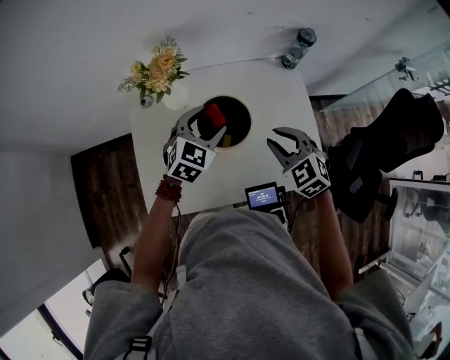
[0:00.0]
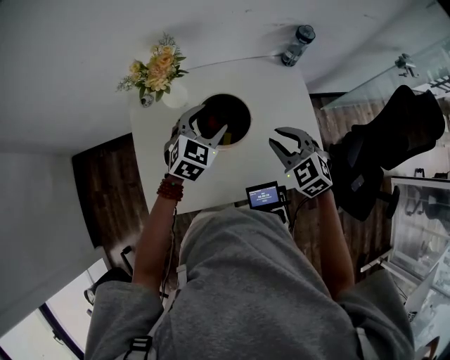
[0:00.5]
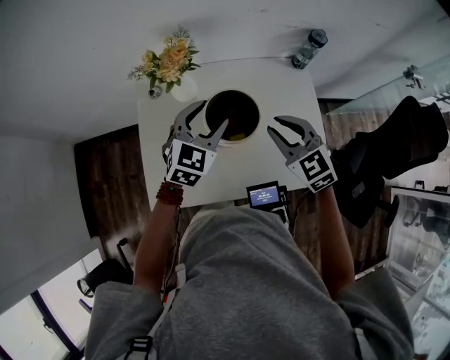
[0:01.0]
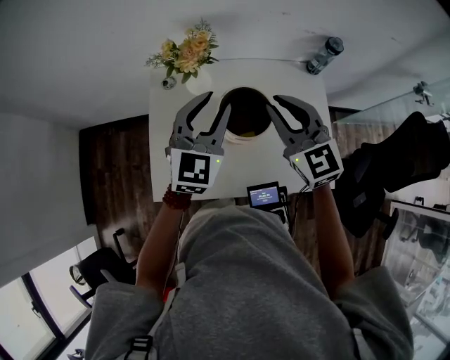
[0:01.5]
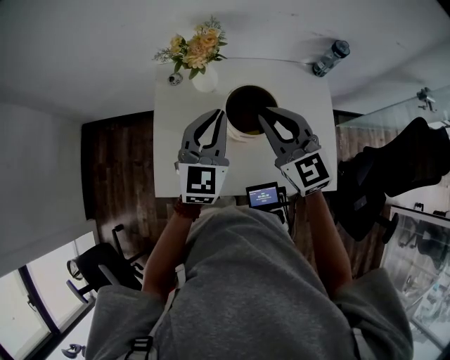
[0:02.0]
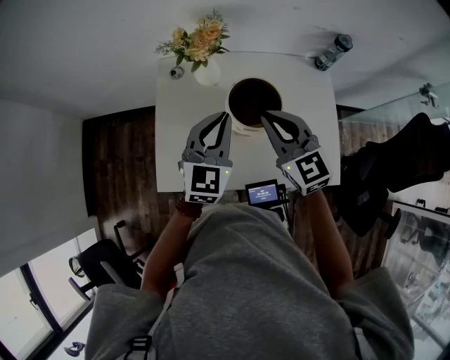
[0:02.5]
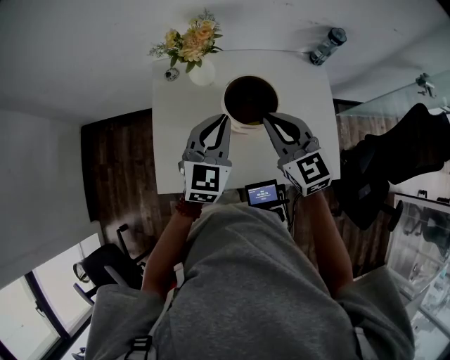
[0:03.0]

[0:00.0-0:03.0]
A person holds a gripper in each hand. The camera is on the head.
0:00.0 to 0:01.5: Both grippers move upward and to the left, about 15 cm. The left gripper swivels roughly 30 degrees, and closes its fingers. The right gripper changes its angle by some 30 degrees.
0:01.5 to 0:03.0: The left gripper moves downward and backward, roughly 10 cm, and closes its fingers, while the right gripper goes approximately 5 cm downward.

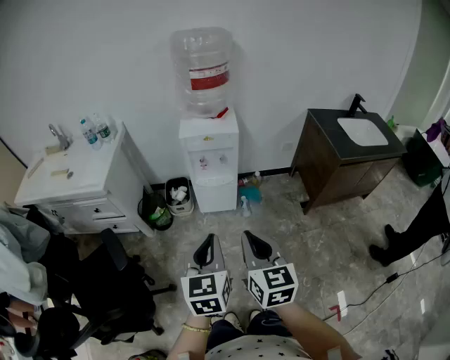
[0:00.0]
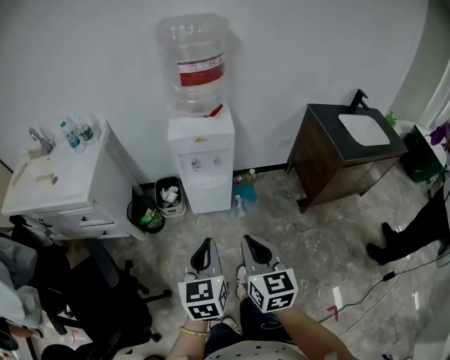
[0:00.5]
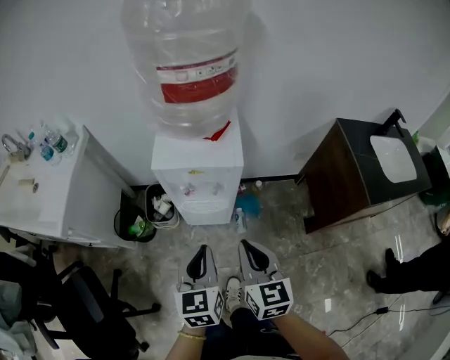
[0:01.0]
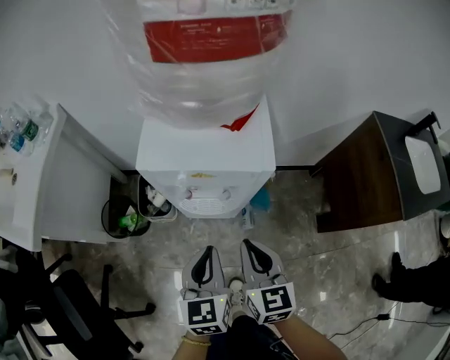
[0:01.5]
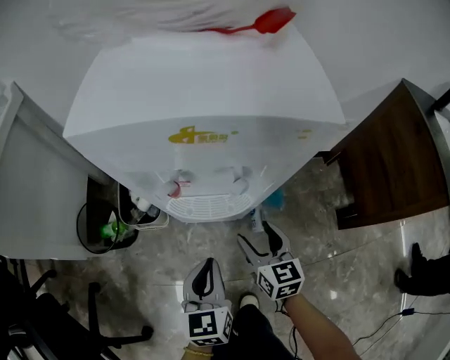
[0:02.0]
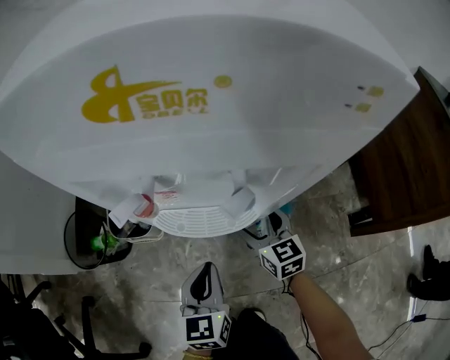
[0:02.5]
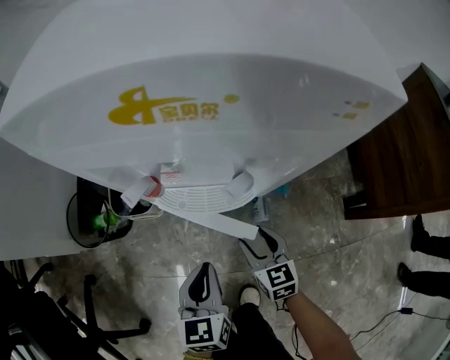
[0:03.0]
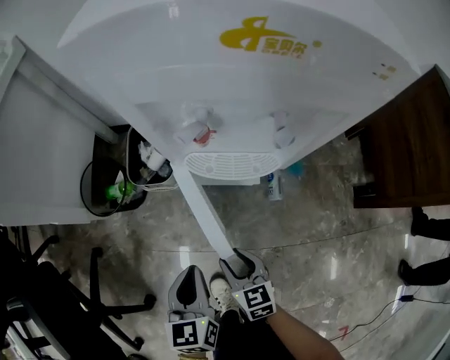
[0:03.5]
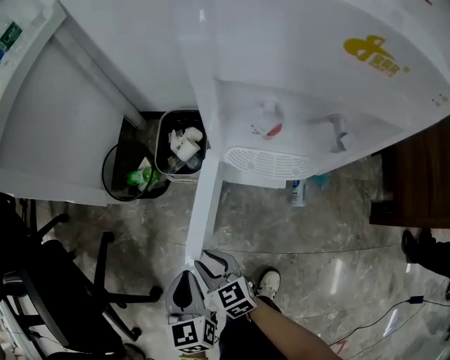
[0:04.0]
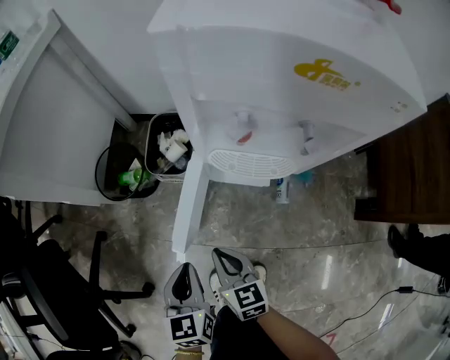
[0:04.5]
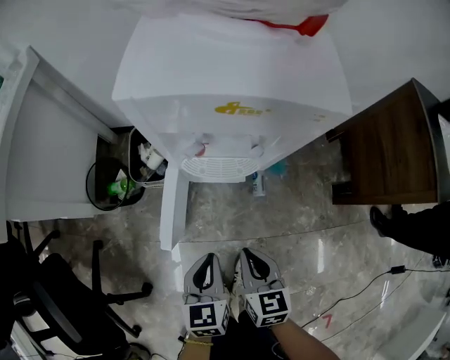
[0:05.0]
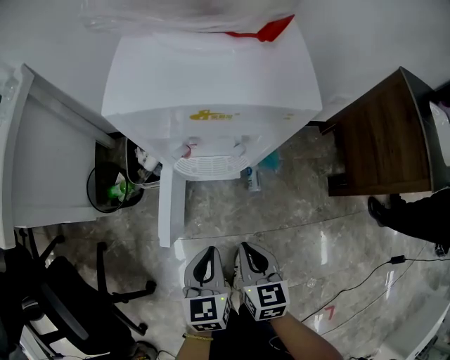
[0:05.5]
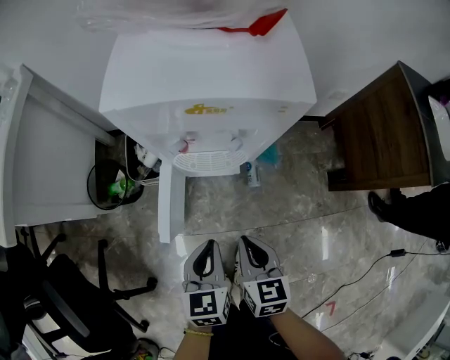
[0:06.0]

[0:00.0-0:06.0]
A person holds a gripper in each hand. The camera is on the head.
0:00.0 to 0:02.0: The two grippers travel together, forward, approximately 40 cm. The two grippers go about 50 cm downward. The right gripper opens its fingers.
0:02.0 to 0:04.0: The right gripper ends up about 35 cm from where it was, changes its angle by some 40 degrees, and closes up, while the left gripper moves about 25 cm, and swivels some 20 degrees.
0:04.0 to 0:06.0: The right gripper shifts by about 30 cm, and swivels roughly 40 degrees, while the left gripper moves roughly 25 cm, and changes its angle by approximately 20 degrees.

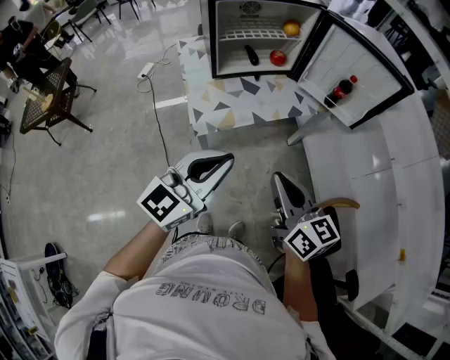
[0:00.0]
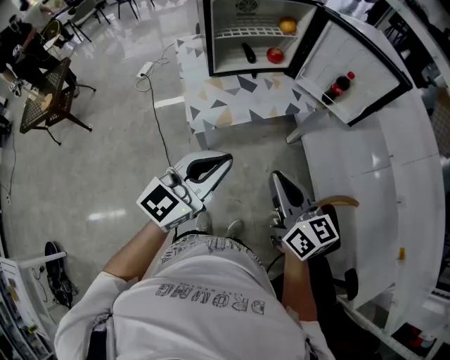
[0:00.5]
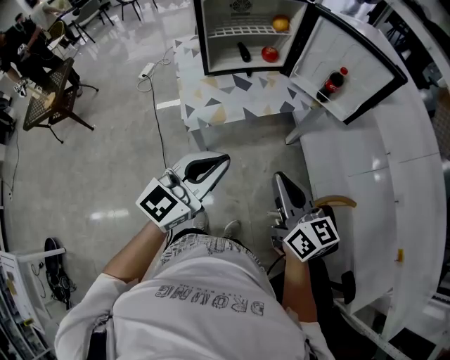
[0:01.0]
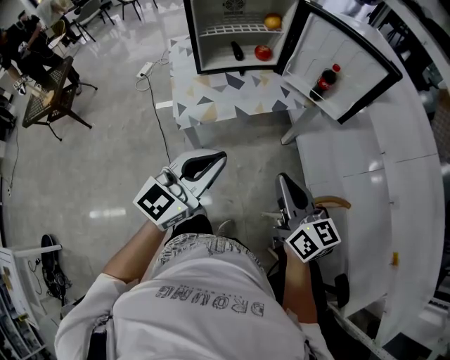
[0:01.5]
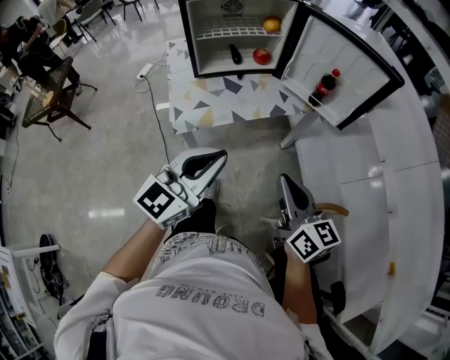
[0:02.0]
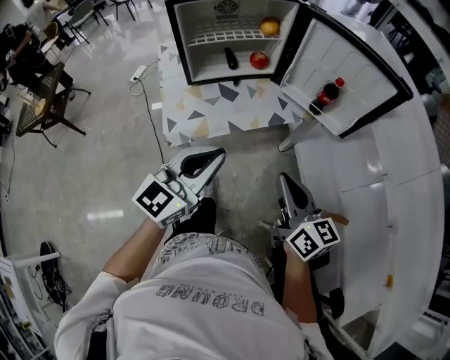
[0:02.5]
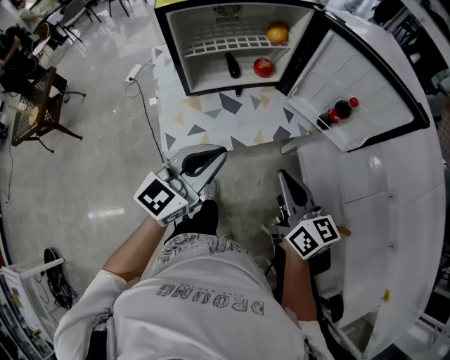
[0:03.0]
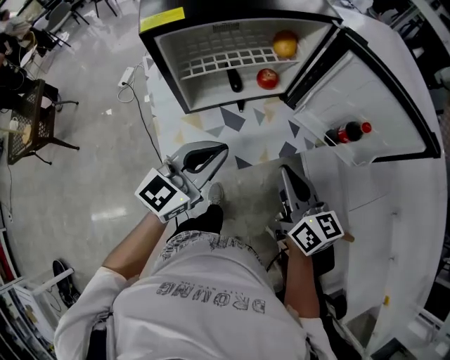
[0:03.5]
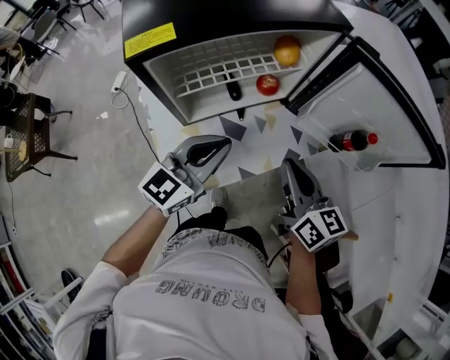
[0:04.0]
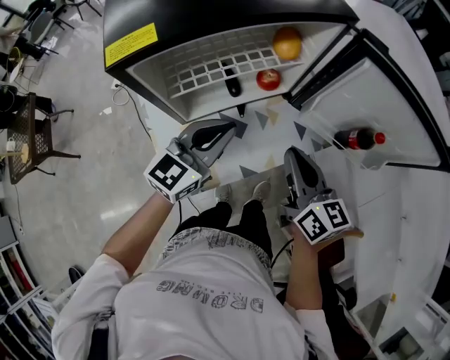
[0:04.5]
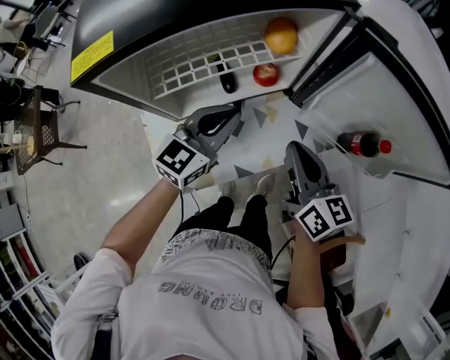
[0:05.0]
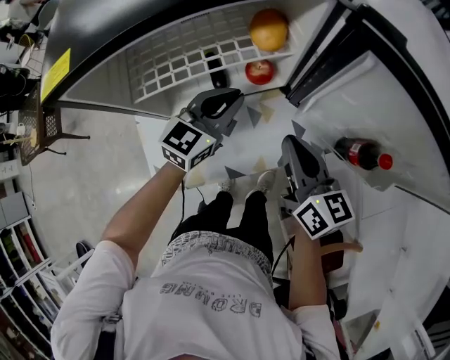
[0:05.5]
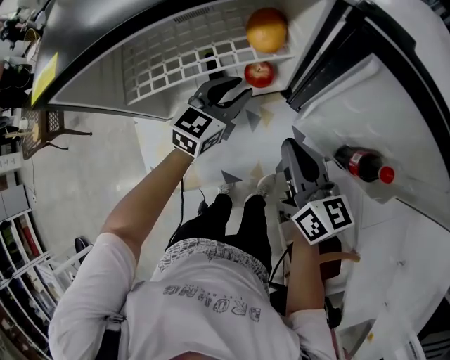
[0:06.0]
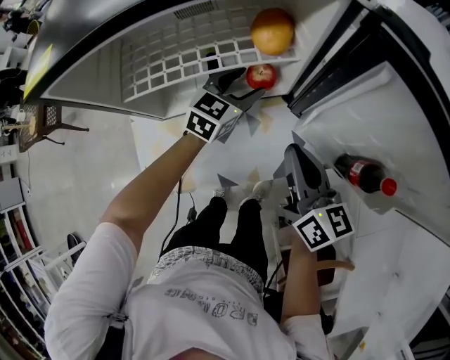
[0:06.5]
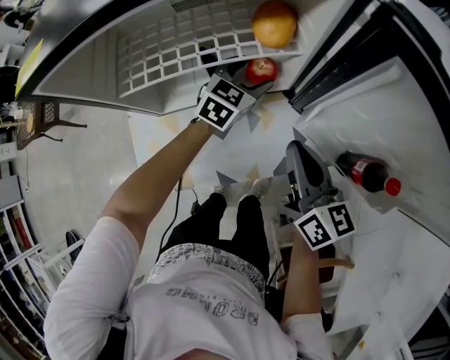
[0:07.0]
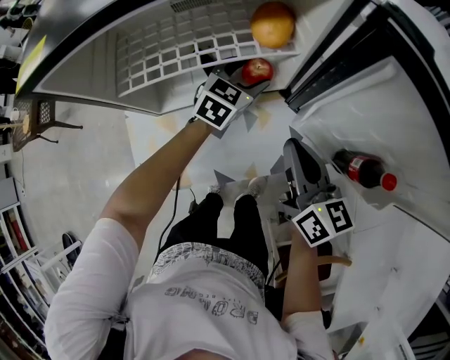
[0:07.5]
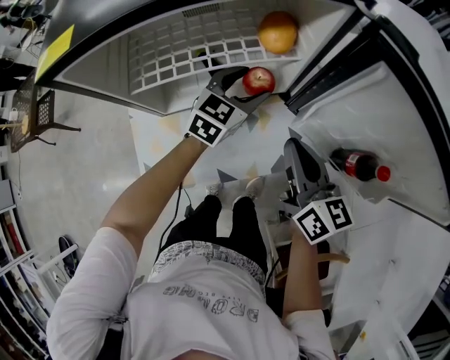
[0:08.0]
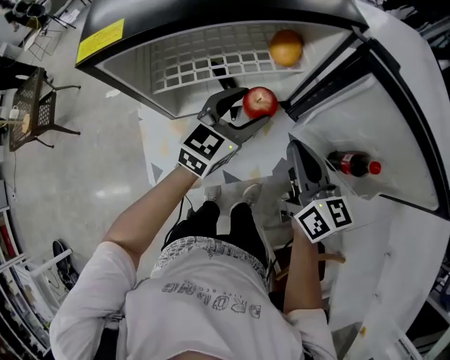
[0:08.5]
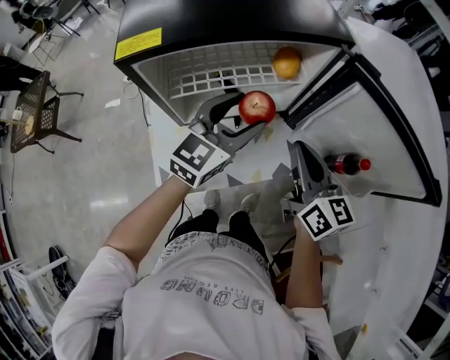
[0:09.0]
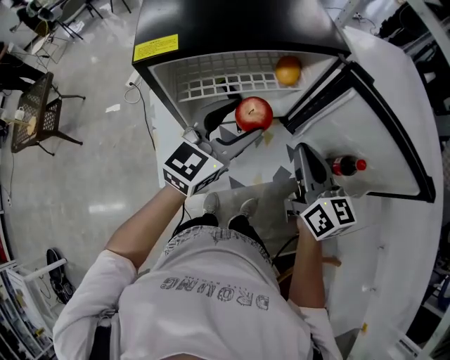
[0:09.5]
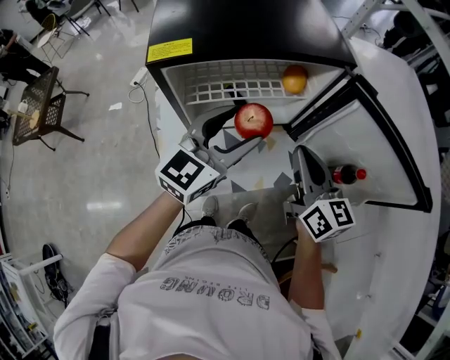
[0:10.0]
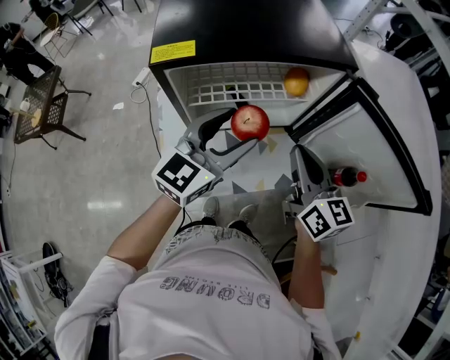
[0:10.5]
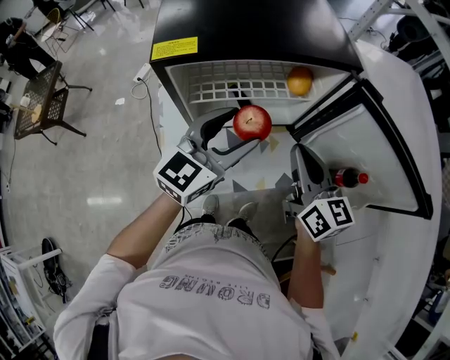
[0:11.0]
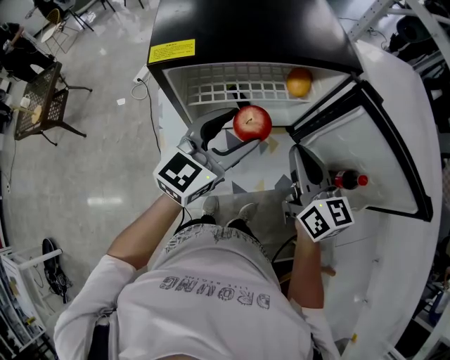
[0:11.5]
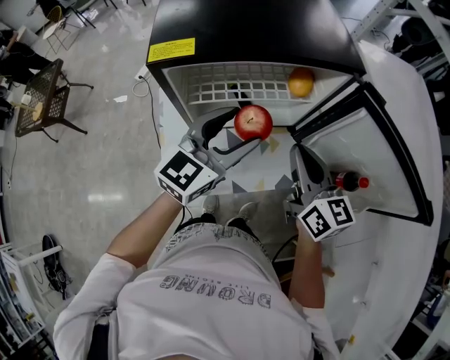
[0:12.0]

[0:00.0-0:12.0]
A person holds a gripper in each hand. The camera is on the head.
0:00.0 to 0:02.0: Both grippers travel together to the right, approximately 10 cm.
0:02.0 to 0:04.0: Both grippers travel together forward, some 30 cm.
0:04.0 to 0:06.0: The right gripper goes roughly 15 cm forward, downward and to the right. Meanwhile the left gripper heads forward and downward, covering approximately 25 cm, turns by roughly 20 degrees, and opens its fingers.
0:06.0 to 0:08.0: The left gripper opens.
0:08.0 to 0:10.0: The right gripper goes approximately 10 cm upward. Meanwhile the left gripper heads upward and backward, covering some 25 cm.
0:10.0 to 0:12.0: There are only small adjustments of the grippers.

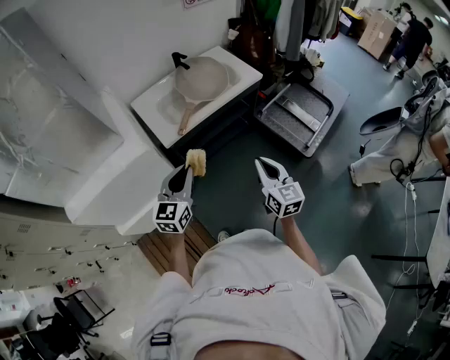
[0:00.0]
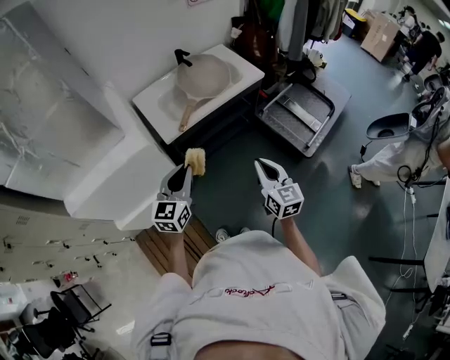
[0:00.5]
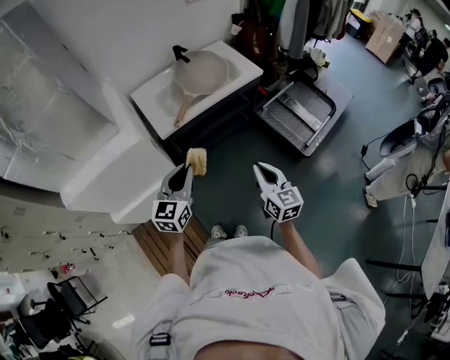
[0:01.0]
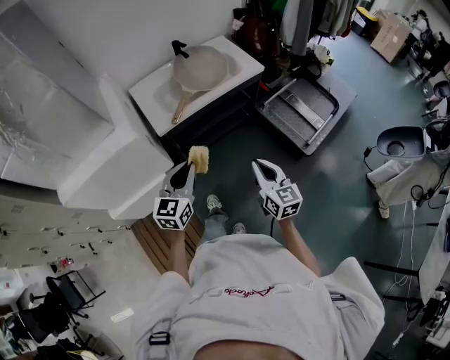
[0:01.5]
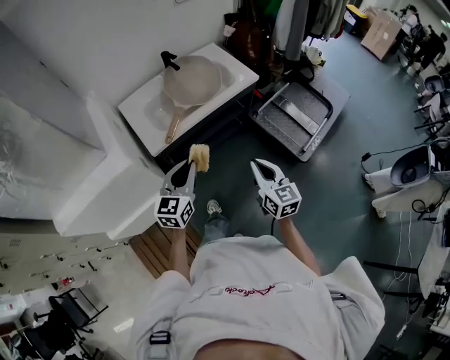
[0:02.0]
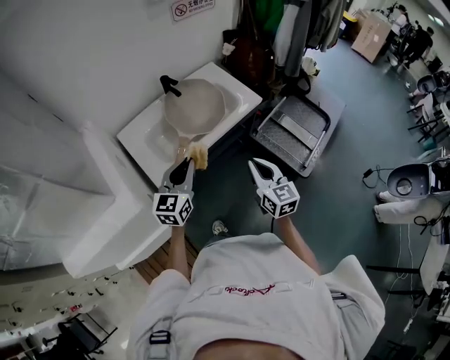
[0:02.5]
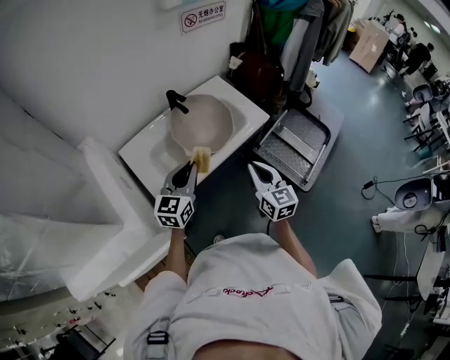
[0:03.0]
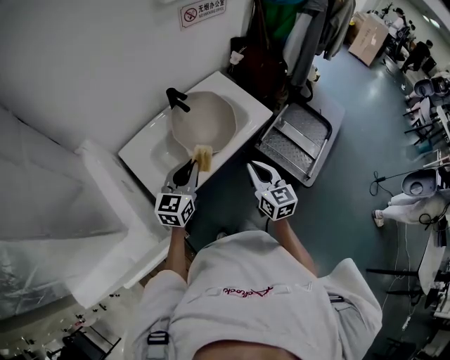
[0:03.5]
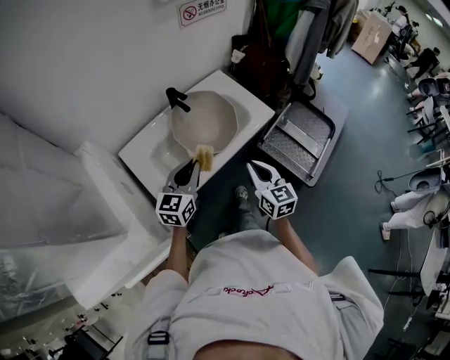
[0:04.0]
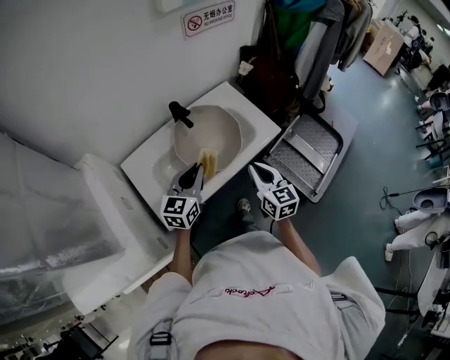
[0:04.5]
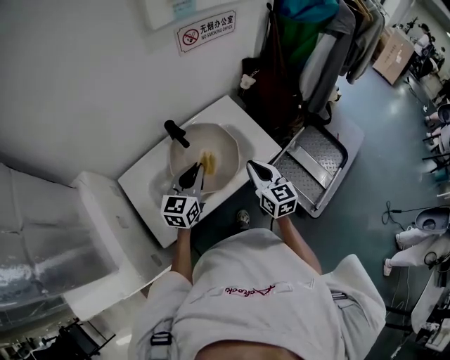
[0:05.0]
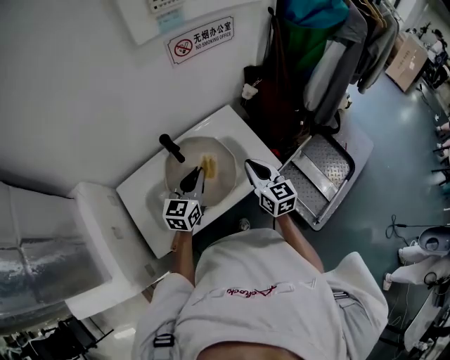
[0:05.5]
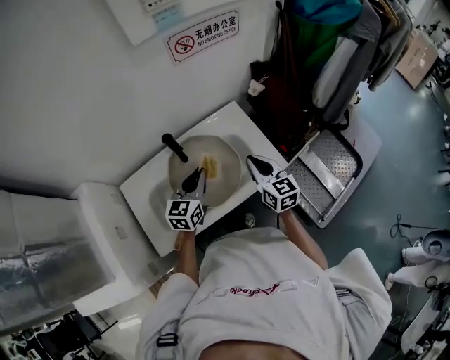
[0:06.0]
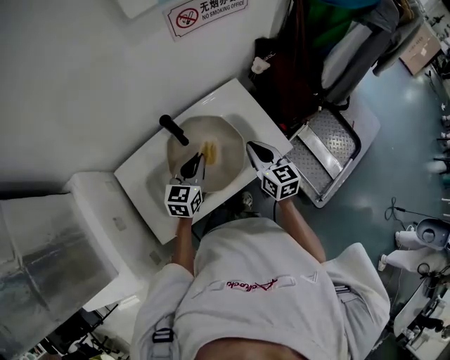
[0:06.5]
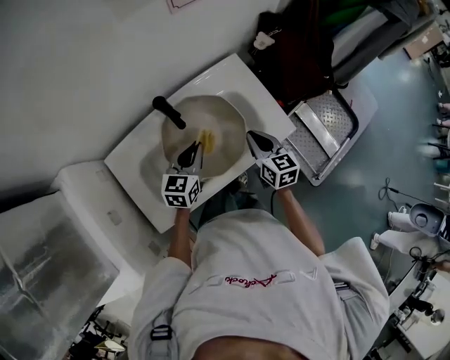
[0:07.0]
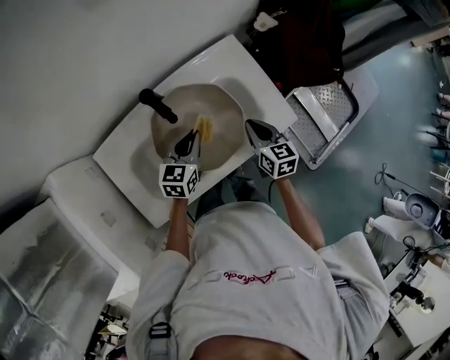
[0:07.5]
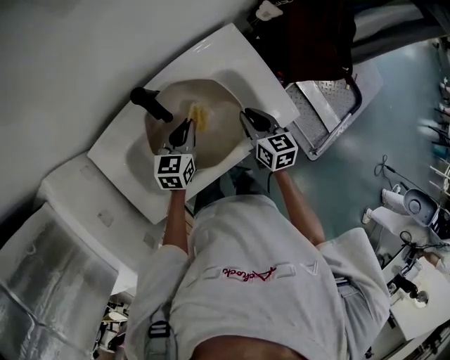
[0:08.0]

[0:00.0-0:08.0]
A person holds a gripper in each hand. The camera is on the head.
0:00.0 to 0:02.0: The left gripper goes about 10 cm forward and to the right. The right gripper is displaced forward by some 5 cm.
0:02.0 to 0:04.0: The right gripper goes approximately 25 cm forward and to the left, while the left gripper moves forward, about 25 cm.
0:04.0 to 0:06.0: The grippers both shift forward by about 25 cm.
0:06.0 to 0:08.0: The two grippers go approximately 15 cm downward. The right gripper turns by approximately 20 degrees.
